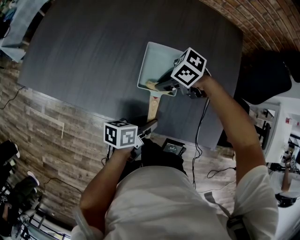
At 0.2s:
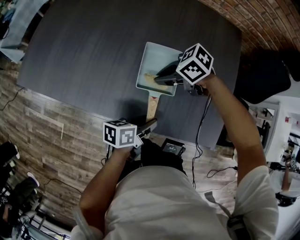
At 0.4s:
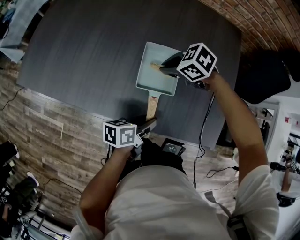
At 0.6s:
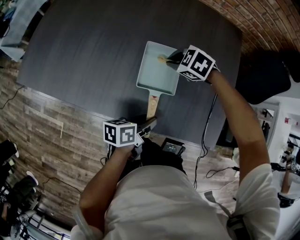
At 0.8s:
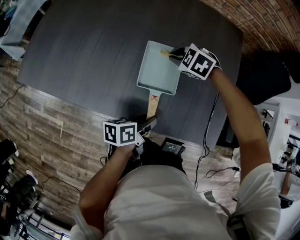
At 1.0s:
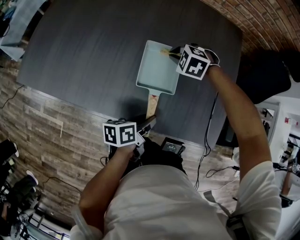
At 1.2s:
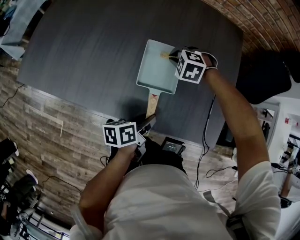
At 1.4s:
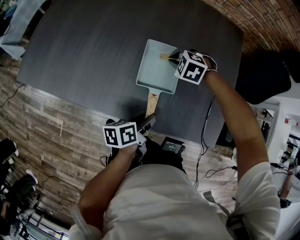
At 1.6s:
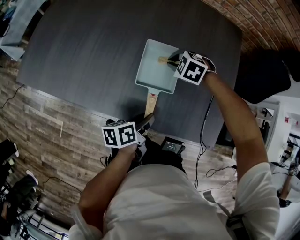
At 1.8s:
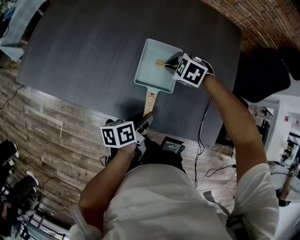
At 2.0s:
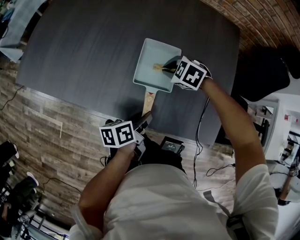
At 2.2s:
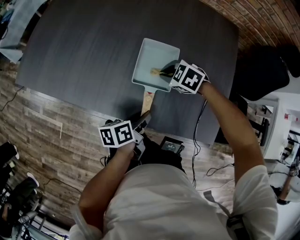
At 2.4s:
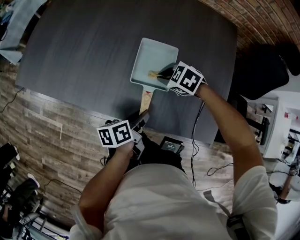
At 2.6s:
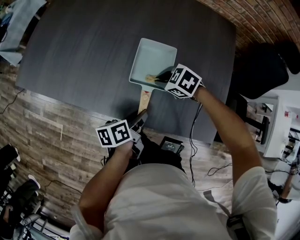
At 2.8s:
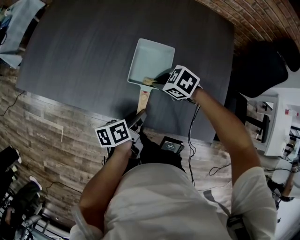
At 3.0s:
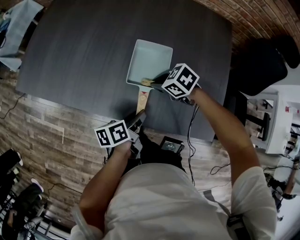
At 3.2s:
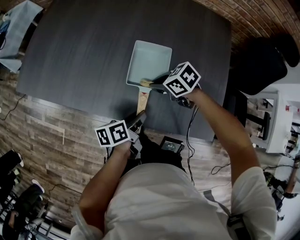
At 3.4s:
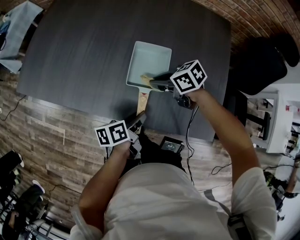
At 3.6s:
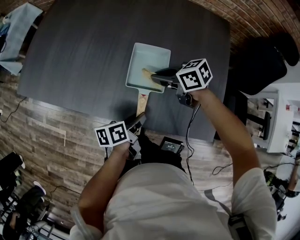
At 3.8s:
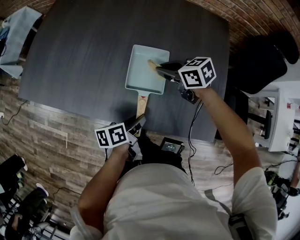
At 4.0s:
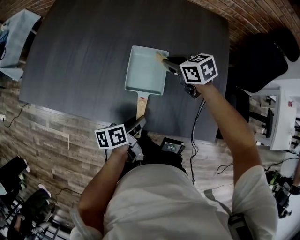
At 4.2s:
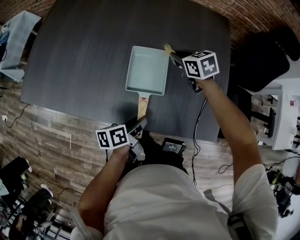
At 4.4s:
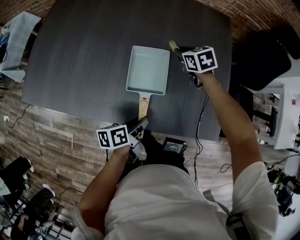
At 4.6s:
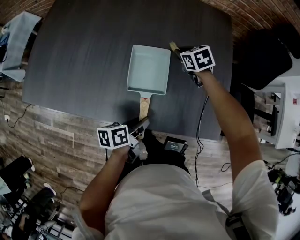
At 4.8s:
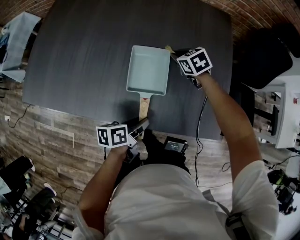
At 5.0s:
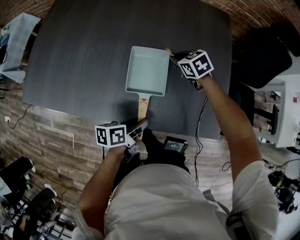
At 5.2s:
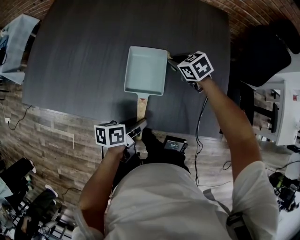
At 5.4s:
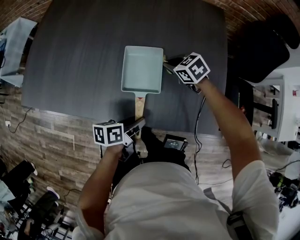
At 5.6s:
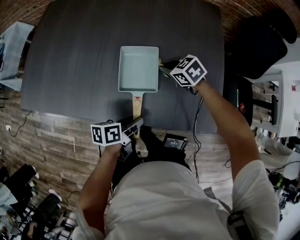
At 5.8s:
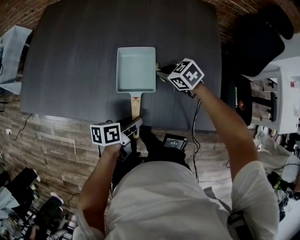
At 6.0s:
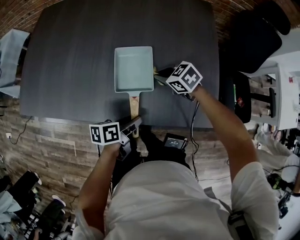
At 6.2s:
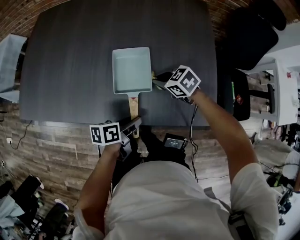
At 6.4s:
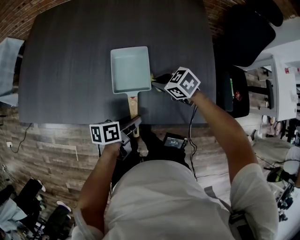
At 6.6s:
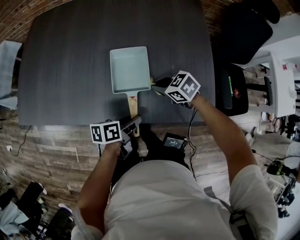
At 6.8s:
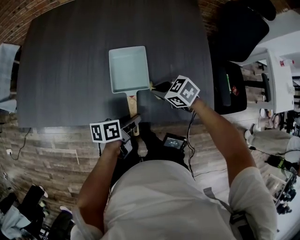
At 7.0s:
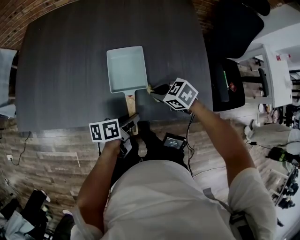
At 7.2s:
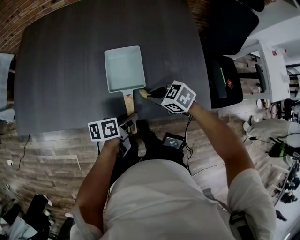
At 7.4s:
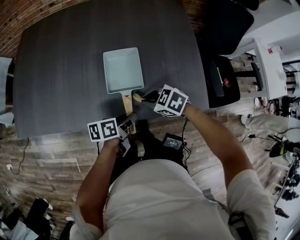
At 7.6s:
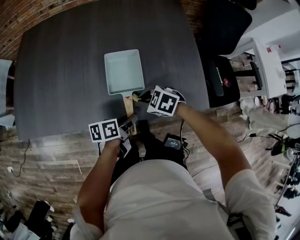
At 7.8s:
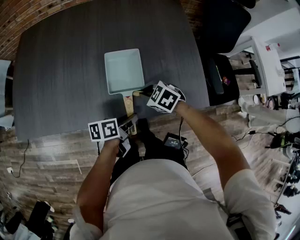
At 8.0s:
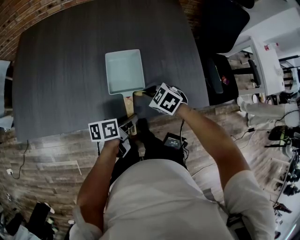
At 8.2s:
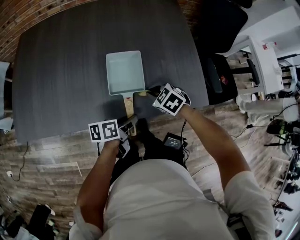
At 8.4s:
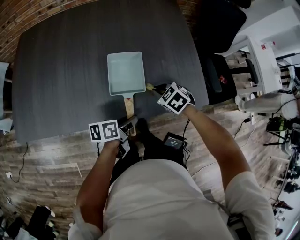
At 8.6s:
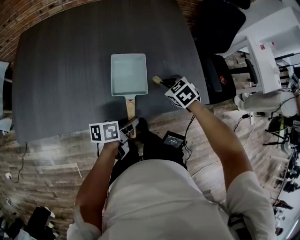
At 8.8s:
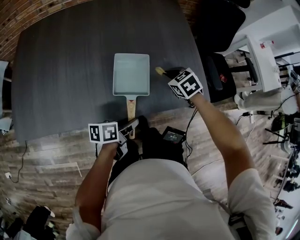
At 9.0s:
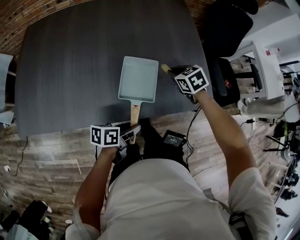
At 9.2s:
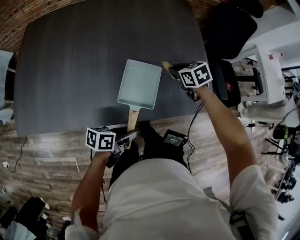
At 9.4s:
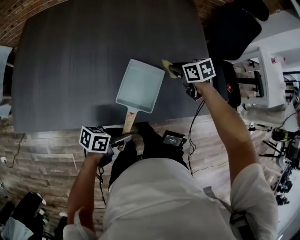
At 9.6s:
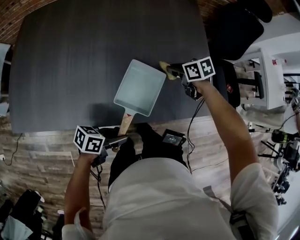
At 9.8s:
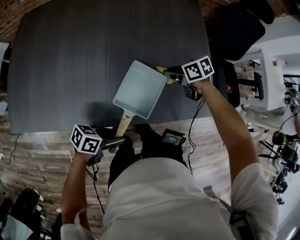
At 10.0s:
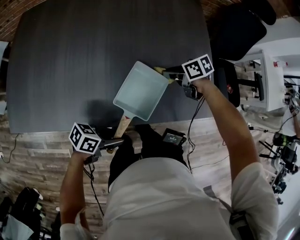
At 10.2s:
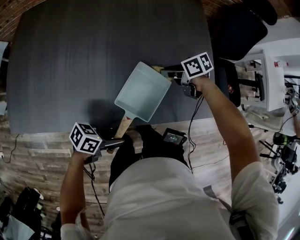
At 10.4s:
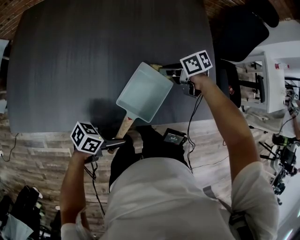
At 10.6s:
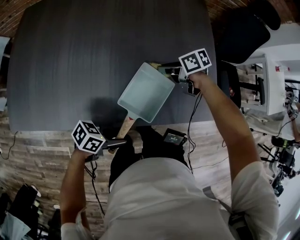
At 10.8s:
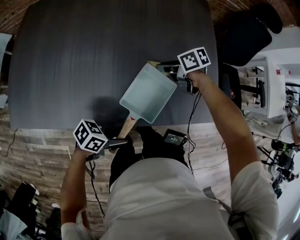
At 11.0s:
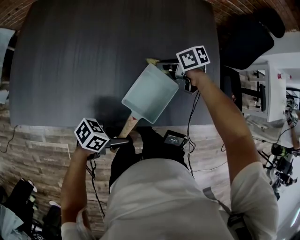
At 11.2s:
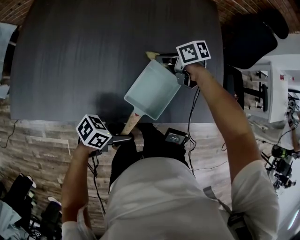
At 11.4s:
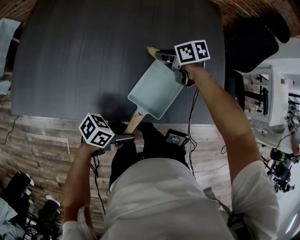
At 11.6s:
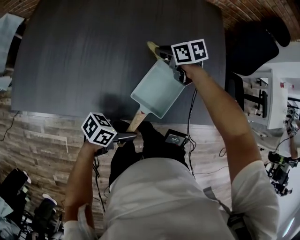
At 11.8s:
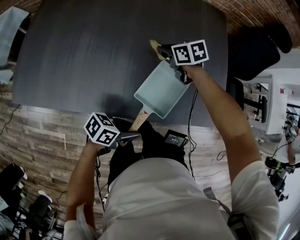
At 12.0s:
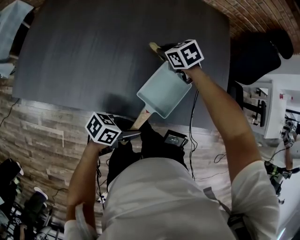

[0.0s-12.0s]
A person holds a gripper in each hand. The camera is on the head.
0.0s to 1.6s: The right gripper changes place by about 10 cm, and changes its angle by roughly 50 degrees.
1.6s to 3.0s: The right gripper changes place by about 10 cm, and rotates some 40 degrees.
3.0s to 4.4s: The right gripper changes place by some 20 cm, and swivels approximately 40 degrees.
4.4s to 6.0s: The right gripper ends up approximately 15 cm from where it was, and rotates some 20 degrees.
6.0s to 7.6s: The right gripper ends up about 15 cm from where it was.
7.6s to 9.0s: The right gripper shifts by approximately 15 cm, and rotates about 40 degrees; the left gripper moves approximately 5 cm.
9.0s to 10.4s: The left gripper turns by approximately 30 degrees; the right gripper shifts by approximately 10 cm, and changes its angle by roughly 40 degrees.
10.4s to 12.0s: The right gripper changes place by about 15 cm, and rotates about 40 degrees.

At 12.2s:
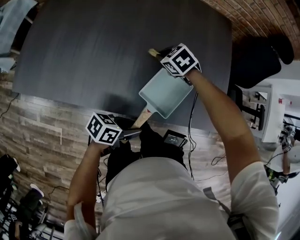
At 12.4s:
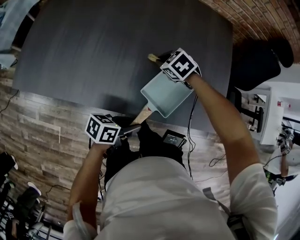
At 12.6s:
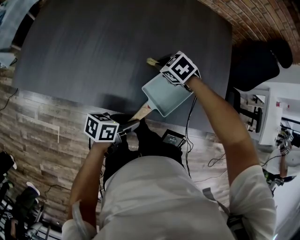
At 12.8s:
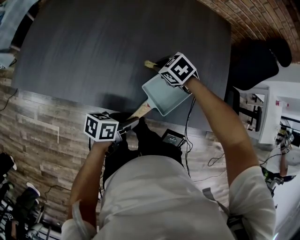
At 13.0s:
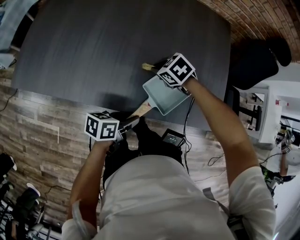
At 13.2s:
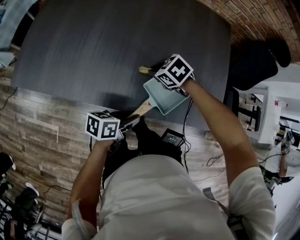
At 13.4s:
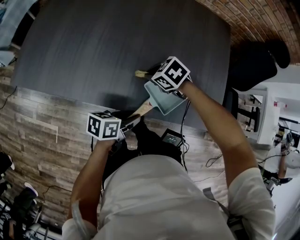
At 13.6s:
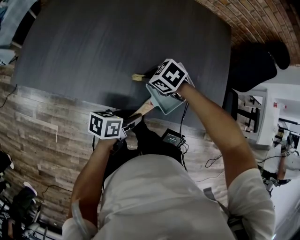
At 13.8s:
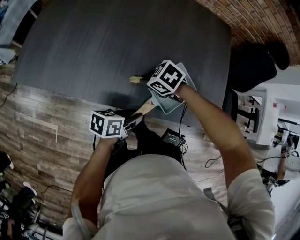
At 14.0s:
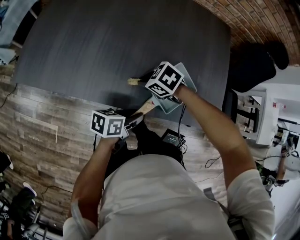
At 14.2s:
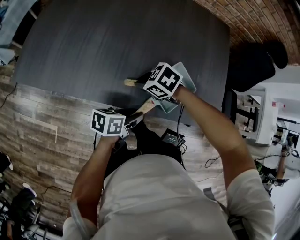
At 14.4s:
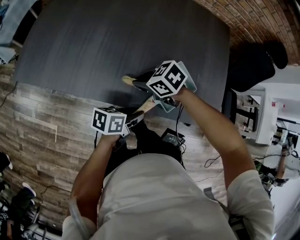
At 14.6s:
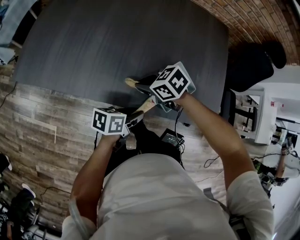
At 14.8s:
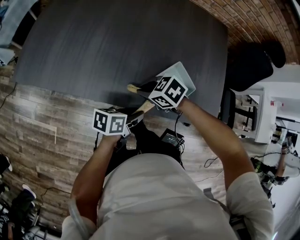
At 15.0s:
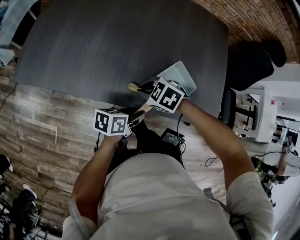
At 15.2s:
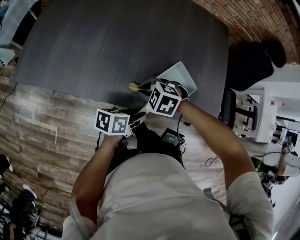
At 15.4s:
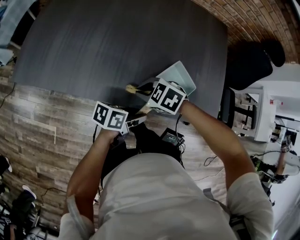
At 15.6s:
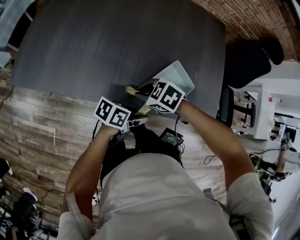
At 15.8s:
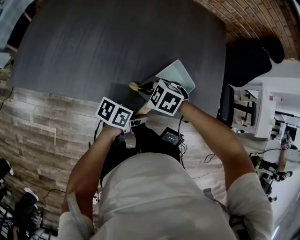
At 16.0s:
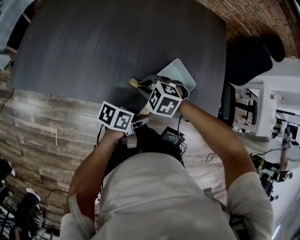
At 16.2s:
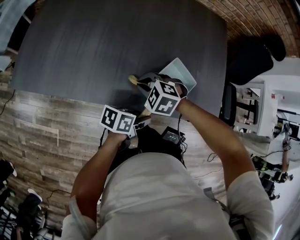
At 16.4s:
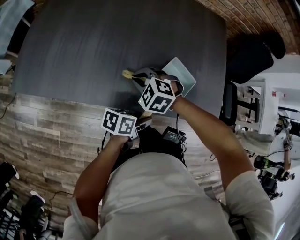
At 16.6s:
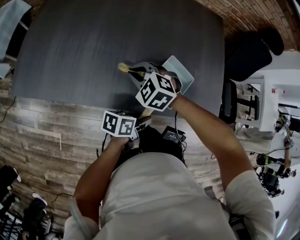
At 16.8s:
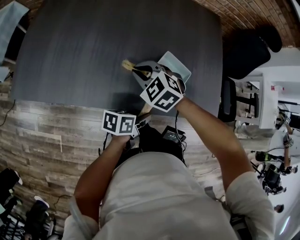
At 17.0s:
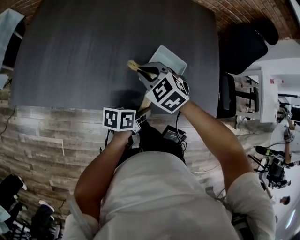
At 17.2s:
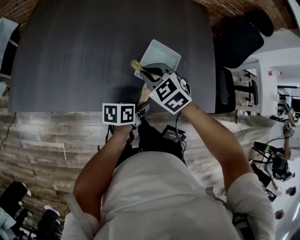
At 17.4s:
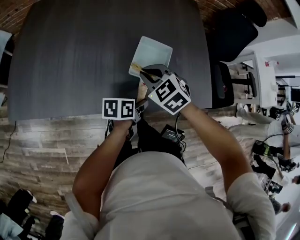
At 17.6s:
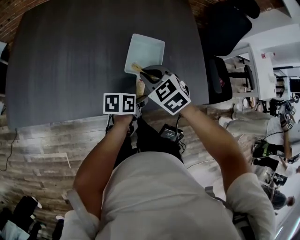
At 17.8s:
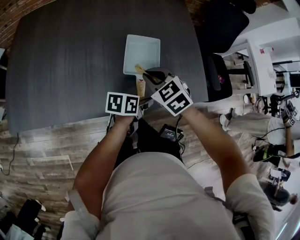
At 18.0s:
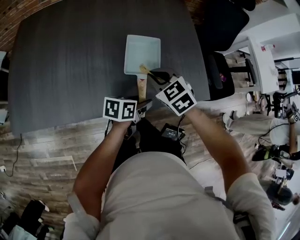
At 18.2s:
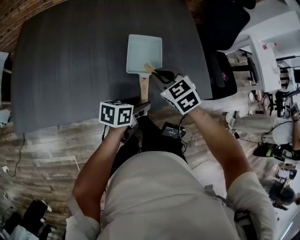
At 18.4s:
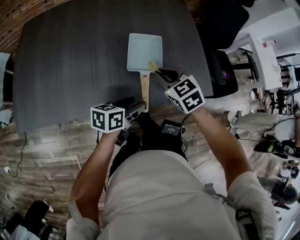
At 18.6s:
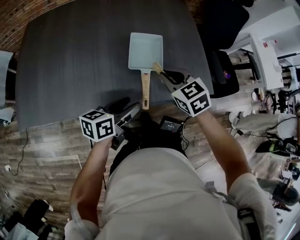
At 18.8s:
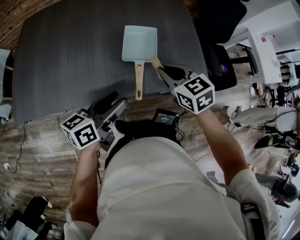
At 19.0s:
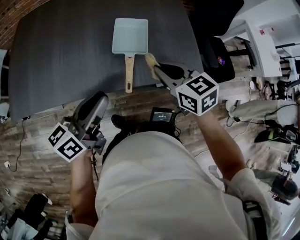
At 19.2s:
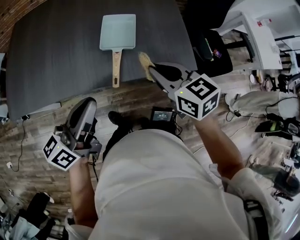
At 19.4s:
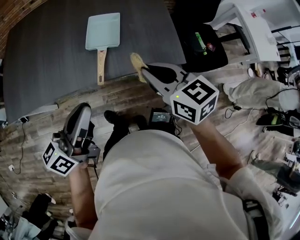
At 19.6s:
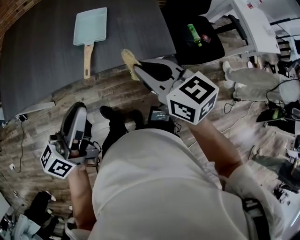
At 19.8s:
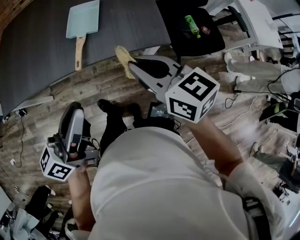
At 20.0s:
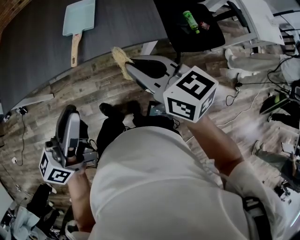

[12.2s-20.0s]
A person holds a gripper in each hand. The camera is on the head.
12.2s to 13.8s: The left gripper changes its angle by roughly 20 degrees; the right gripper moves approximately 15 cm.
13.8s to 15.4s: The right gripper ends up some 5 cm from where it was.
15.4s to 16.8s: The right gripper changes place by approximately 10 cm, and changes its angle by about 30 degrees.
16.8s to 18.4s: The left gripper opens up. The right gripper is displaced to the right by some 20 cm, and turns by approximately 40 degrees.
18.4s to 20.0s: The right gripper is displaced backward, to the right and upward by about 25 cm, and swivels some 40 degrees; the left gripper goes approximately 30 cm upward and backward, angles its fingers upward, by approximately 30 degrees, and closes.

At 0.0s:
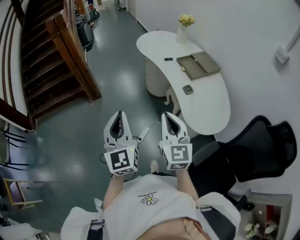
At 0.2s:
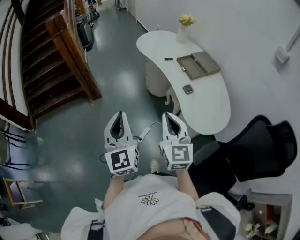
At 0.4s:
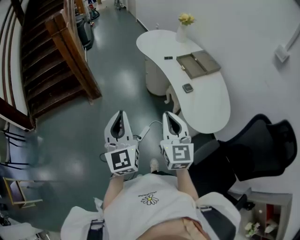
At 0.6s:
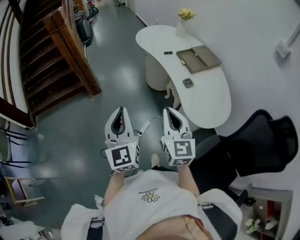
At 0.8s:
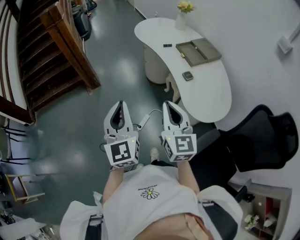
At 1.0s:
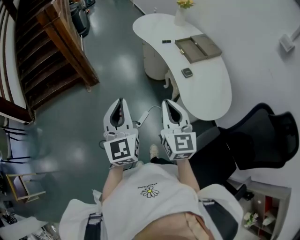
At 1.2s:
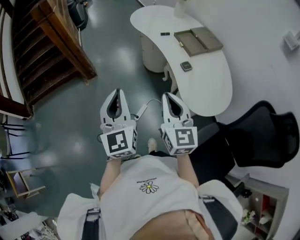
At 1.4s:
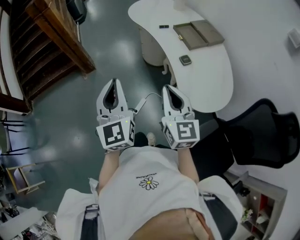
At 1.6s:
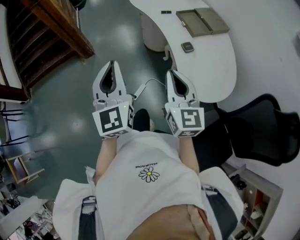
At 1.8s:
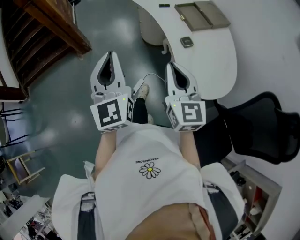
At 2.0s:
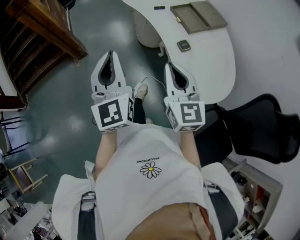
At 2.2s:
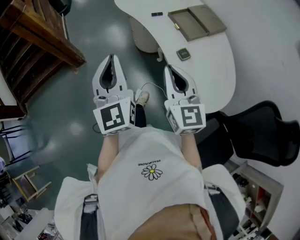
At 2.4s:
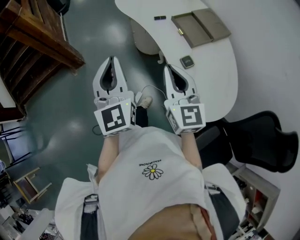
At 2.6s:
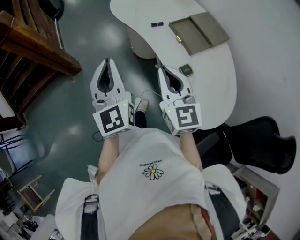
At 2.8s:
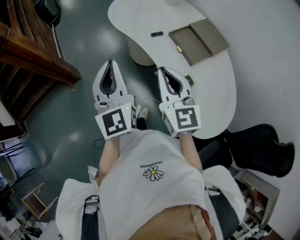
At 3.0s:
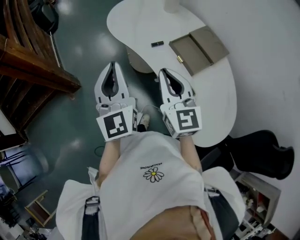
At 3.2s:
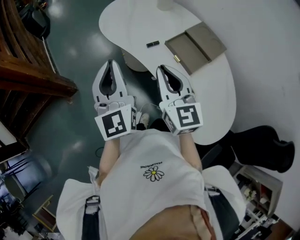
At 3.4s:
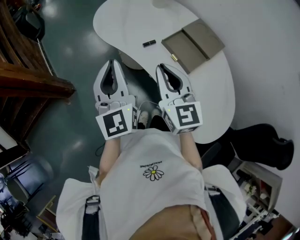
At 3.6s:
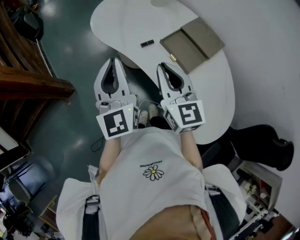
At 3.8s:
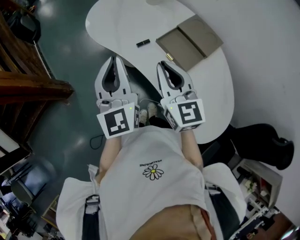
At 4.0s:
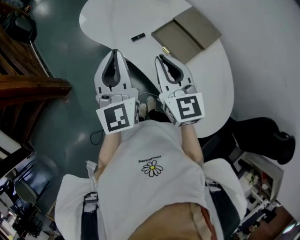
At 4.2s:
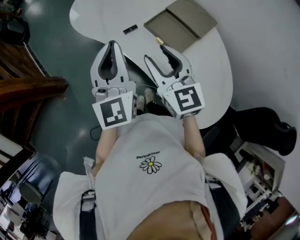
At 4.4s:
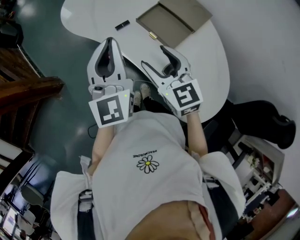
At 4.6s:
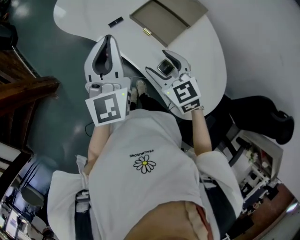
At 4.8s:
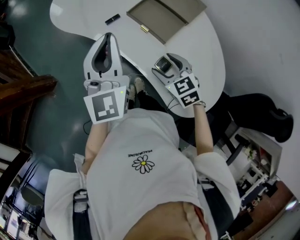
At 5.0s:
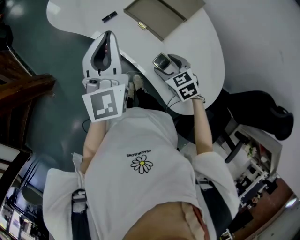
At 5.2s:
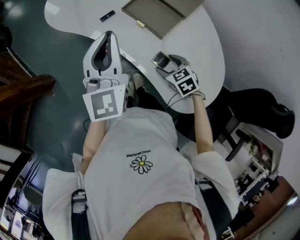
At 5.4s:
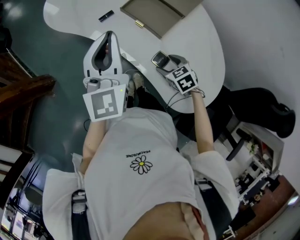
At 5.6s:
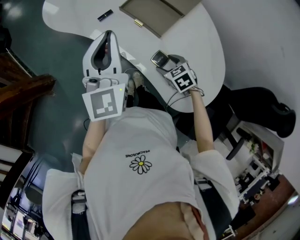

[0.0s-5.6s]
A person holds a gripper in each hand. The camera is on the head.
0.0s to 1.4s: The two grippers go roughly 5 cm to the right.
1.4s to 2.8s: Both grippers move forward, roughly 30 cm.
2.8s to 4.2s: The grippers both shift forward and to the right by roughly 15 cm. The right gripper opens up.
4.2s to 5.6s: The left gripper heads to the right, covering roughly 5 cm. Meanwhile the right gripper moves downward and to the right, roughly 30 cm, and tilts its fingers some 50 degrees downward.
